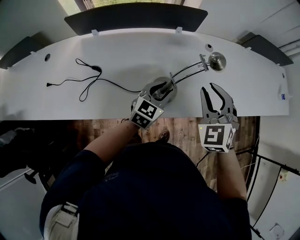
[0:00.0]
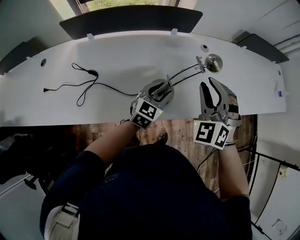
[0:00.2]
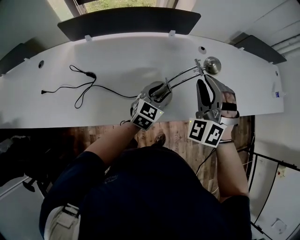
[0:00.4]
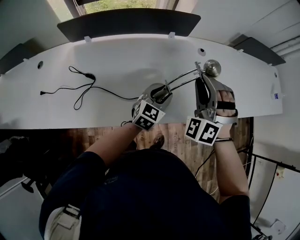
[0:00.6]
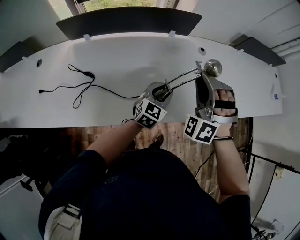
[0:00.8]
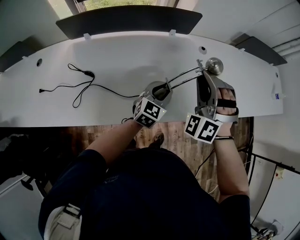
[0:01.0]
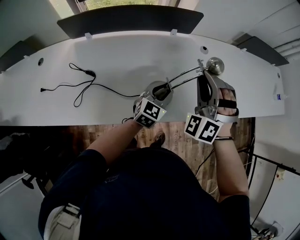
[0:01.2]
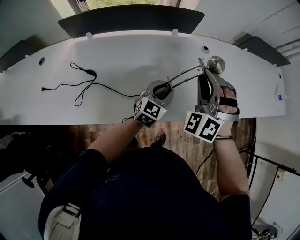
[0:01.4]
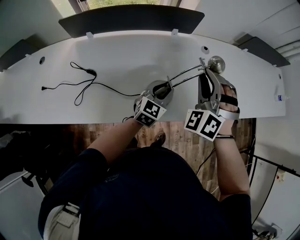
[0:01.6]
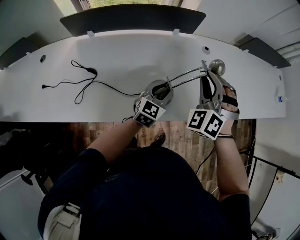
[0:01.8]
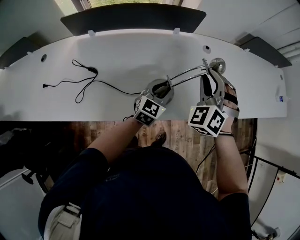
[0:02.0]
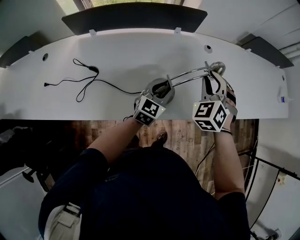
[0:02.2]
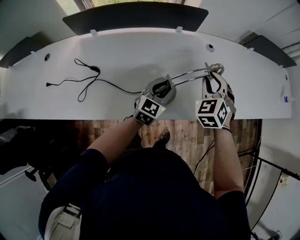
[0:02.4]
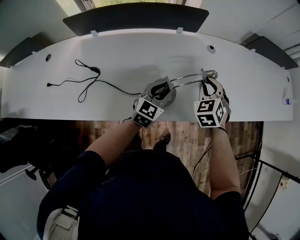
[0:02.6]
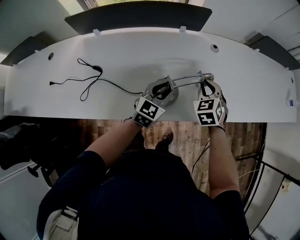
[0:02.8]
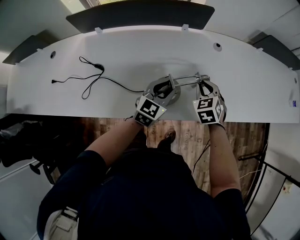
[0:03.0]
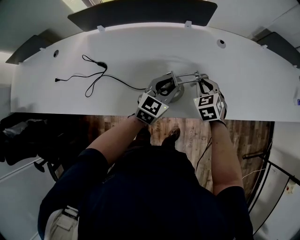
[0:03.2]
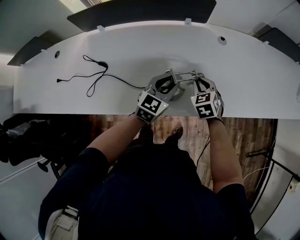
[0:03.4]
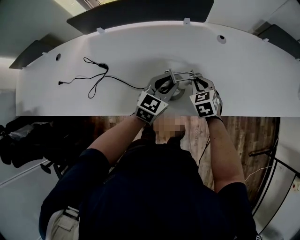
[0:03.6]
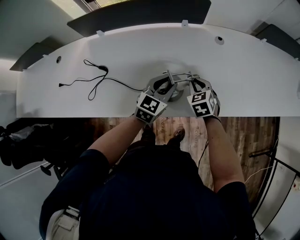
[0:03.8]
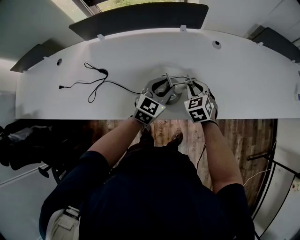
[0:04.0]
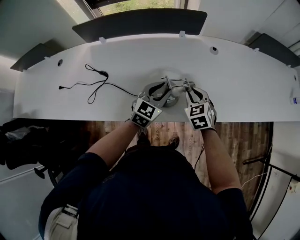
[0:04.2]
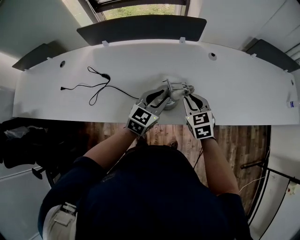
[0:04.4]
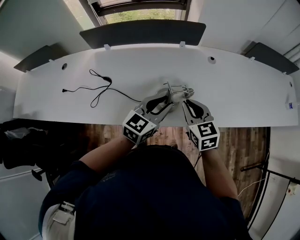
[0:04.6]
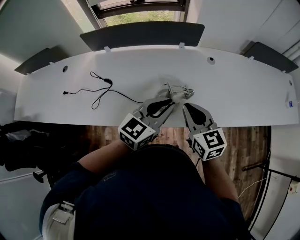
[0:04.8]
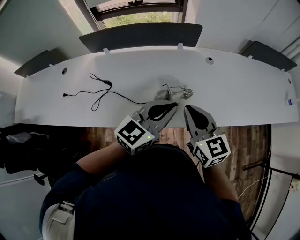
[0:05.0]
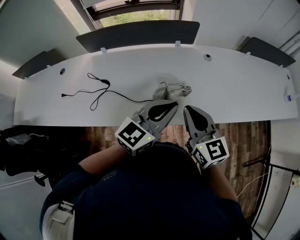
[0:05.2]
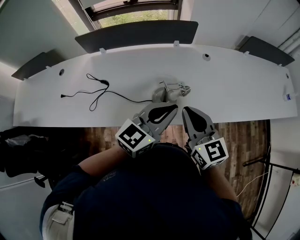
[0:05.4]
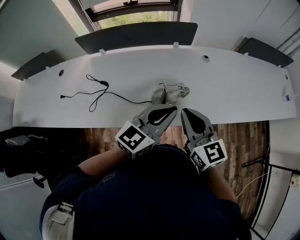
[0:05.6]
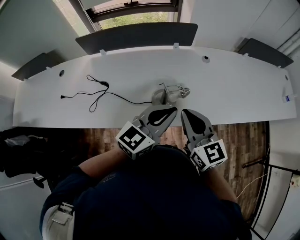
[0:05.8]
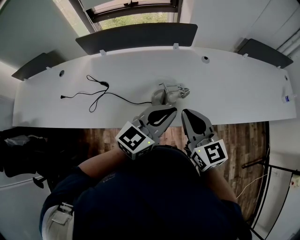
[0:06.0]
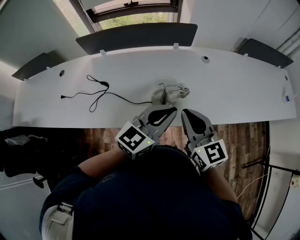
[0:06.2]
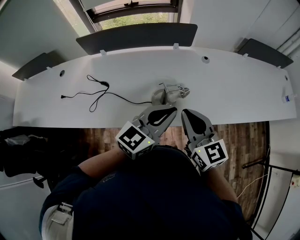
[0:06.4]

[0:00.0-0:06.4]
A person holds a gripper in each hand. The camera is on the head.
0.0 to 1.6 s: The right gripper heads forward, covering roughly 5 cm, and rotates roughly 30 degrees.
1.6 to 3.2 s: The right gripper travels downward by roughly 20 cm, and rolls clockwise, seen from behind, by about 40 degrees.
3.2 to 4.8 s: Both grippers move upward and backward, about 20 cm. The right gripper changes its angle by some 40 degrees.
4.8 to 6.4 s: The left gripper changes place by approximately 5 cm. The right gripper moves some 5 cm.

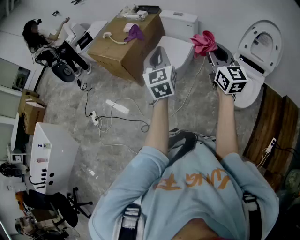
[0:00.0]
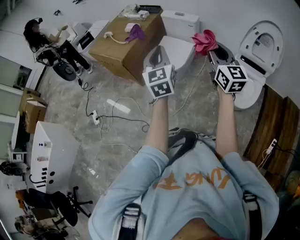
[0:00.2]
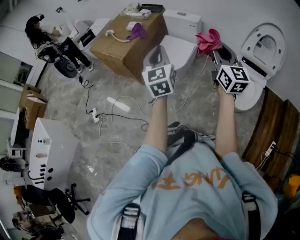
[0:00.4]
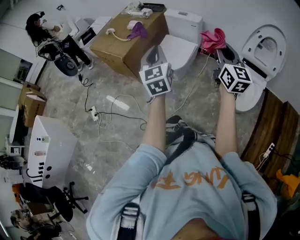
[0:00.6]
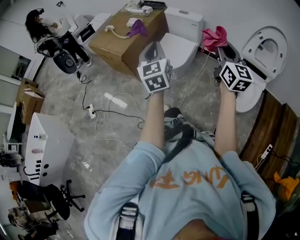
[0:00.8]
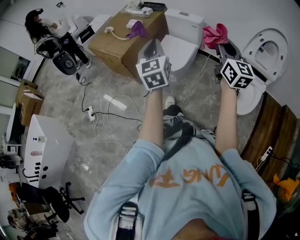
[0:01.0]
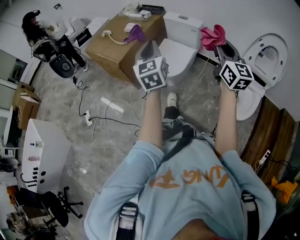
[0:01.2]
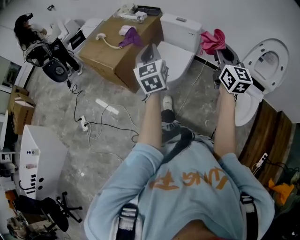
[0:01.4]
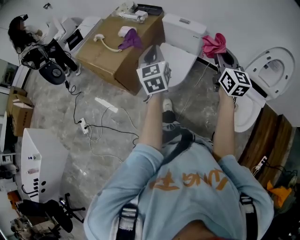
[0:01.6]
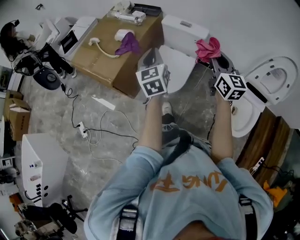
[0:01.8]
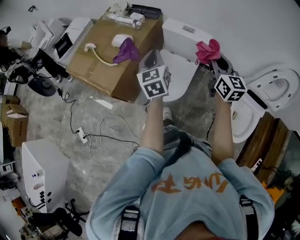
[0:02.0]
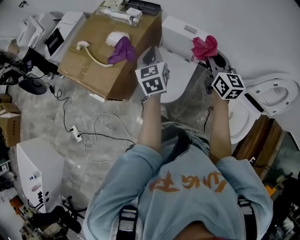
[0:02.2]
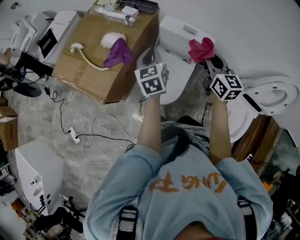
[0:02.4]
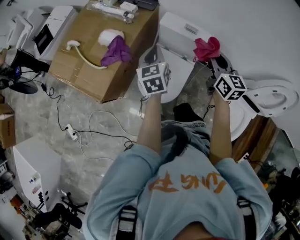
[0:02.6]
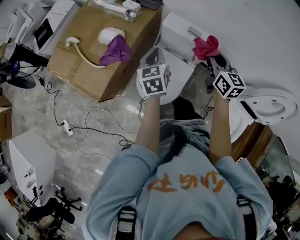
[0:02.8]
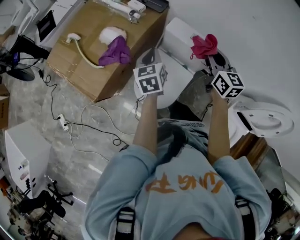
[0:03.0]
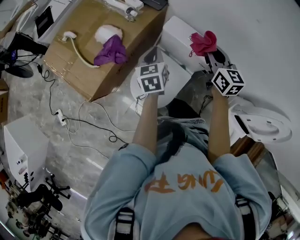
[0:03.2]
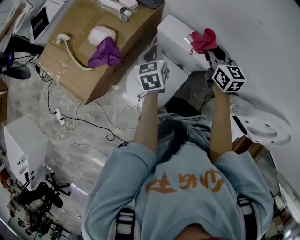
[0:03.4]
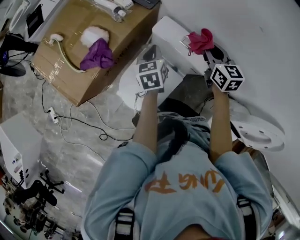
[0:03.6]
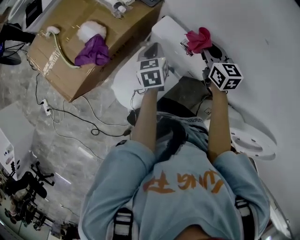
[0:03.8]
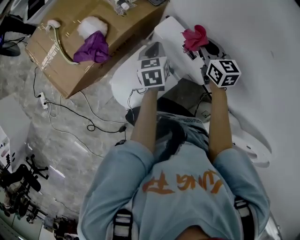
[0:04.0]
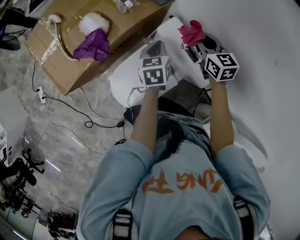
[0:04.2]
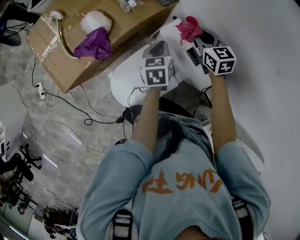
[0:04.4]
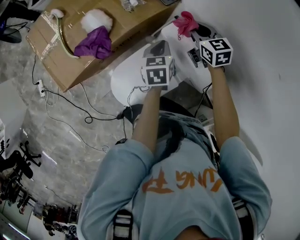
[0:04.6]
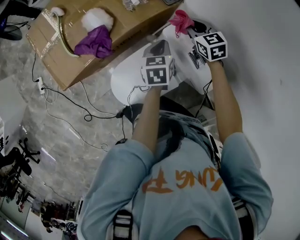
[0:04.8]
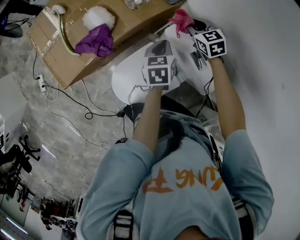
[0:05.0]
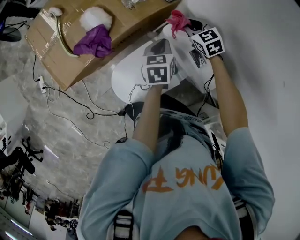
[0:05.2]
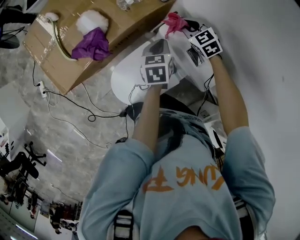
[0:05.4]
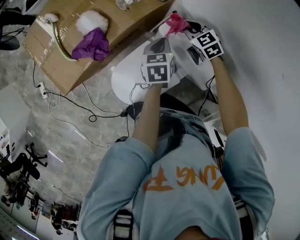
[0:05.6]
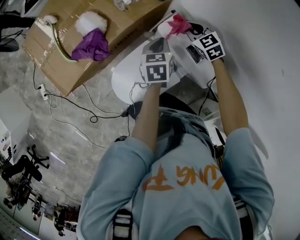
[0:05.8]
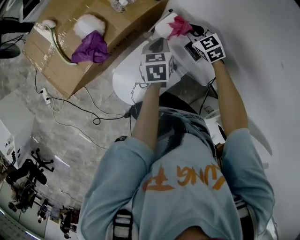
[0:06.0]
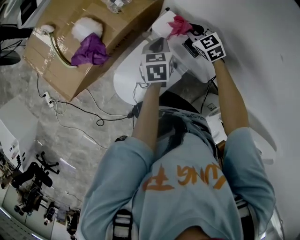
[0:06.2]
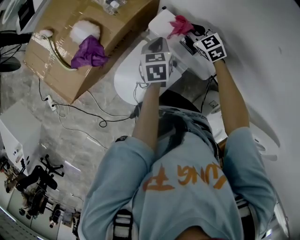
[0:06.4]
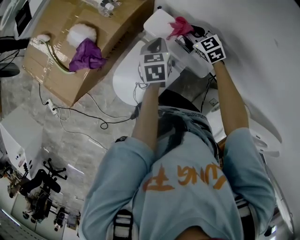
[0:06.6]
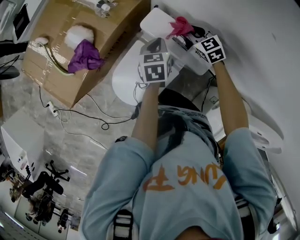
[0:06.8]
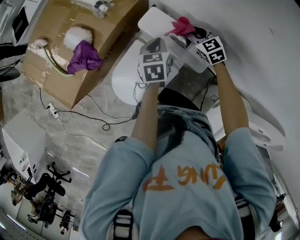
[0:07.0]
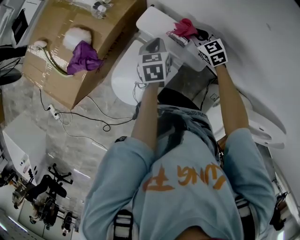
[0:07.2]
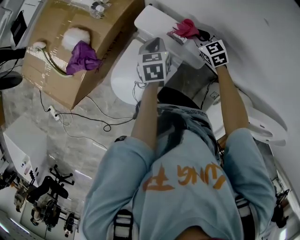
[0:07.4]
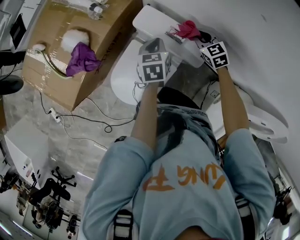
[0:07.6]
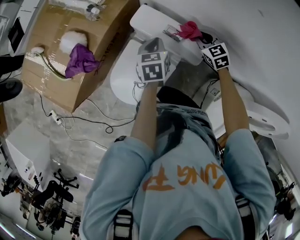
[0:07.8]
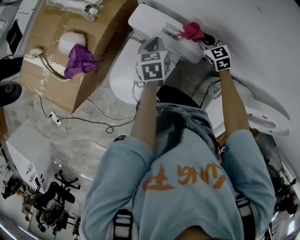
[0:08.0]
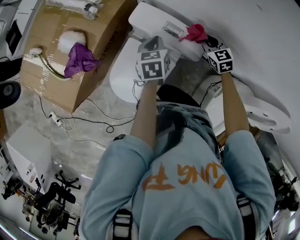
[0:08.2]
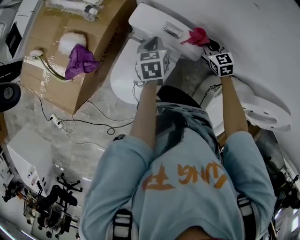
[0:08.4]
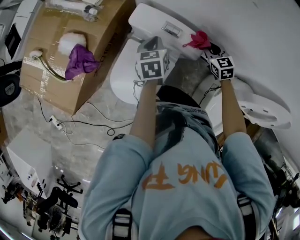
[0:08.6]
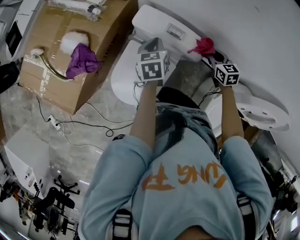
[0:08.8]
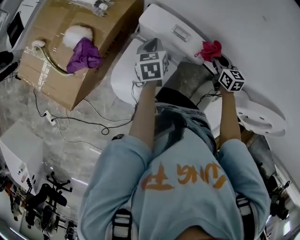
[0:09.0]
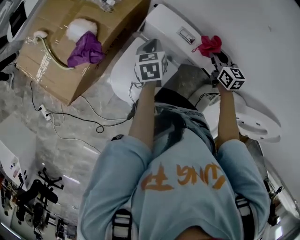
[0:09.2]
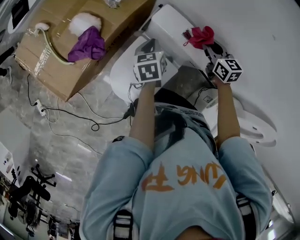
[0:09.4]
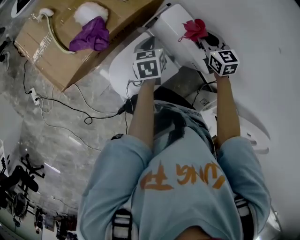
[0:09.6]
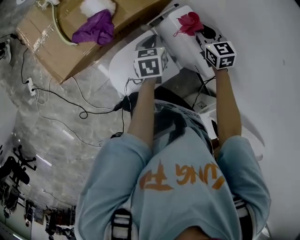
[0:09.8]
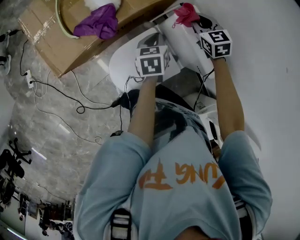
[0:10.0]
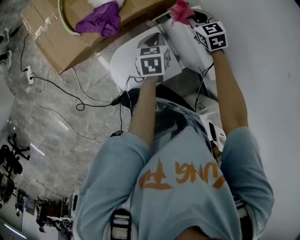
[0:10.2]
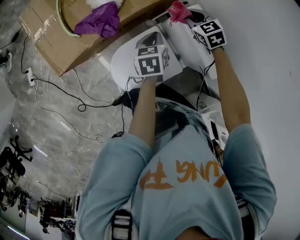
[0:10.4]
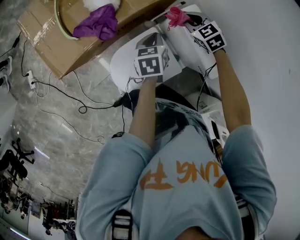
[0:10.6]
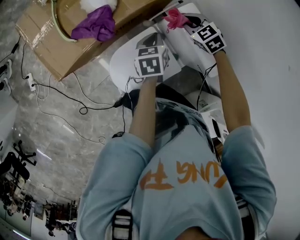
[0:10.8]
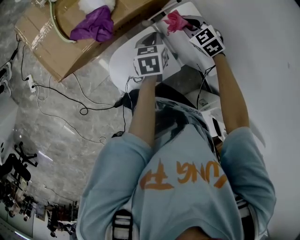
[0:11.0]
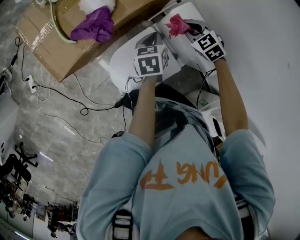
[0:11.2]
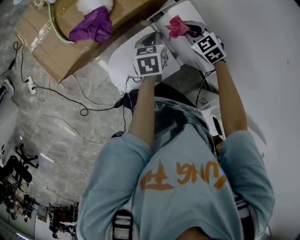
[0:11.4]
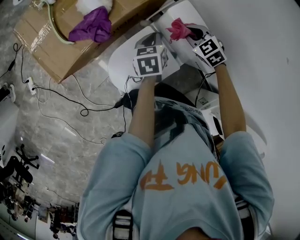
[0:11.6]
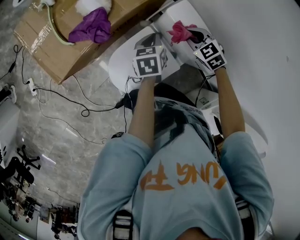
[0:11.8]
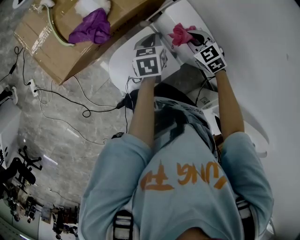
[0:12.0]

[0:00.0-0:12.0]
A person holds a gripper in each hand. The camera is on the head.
0.0 to 1.6 s: The grippers both shift forward by roughly 25 cm.
1.6 to 3.0 s: The right gripper is displaced forward by approximately 40 cm, and swivels some 20 degrees. The left gripper heads forward and downward, covering approximately 40 cm, and turns by approximately 30 degrees.
3.0 to 4.4 s: The left gripper travels to the right, forward and downward by about 20 cm. The right gripper heads forward and downward, covering some 25 cm, and rotates some 30 degrees.
4.4 to 6.0 s: The right gripper goes some 10 cm downward.
6.0 to 7.6 s: The right gripper shifts some 15 cm to the right and backward. Meanwhile the left gripper shifts about 10 cm to the right and backward.
7.6 to 9.0 s: The right gripper shifts about 10 cm backward and to the right, and rotates some 30 degrees.
9.0 to 10.4 s: The right gripper changes place by some 35 cm, and rotates around the line of its fingers by some 50 degrees, counterclockwise from behind; the left gripper ends up approximately 15 cm from where it was, and turns by roughly 20 degrees.
10.4 to 12.0 s: The right gripper travels backward by some 10 cm.

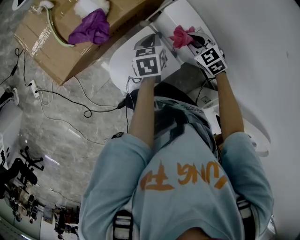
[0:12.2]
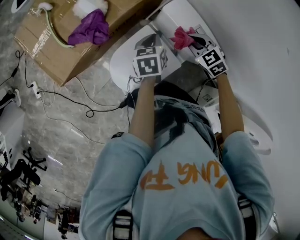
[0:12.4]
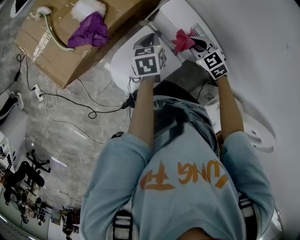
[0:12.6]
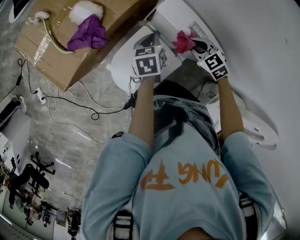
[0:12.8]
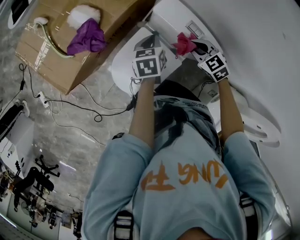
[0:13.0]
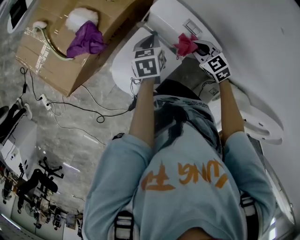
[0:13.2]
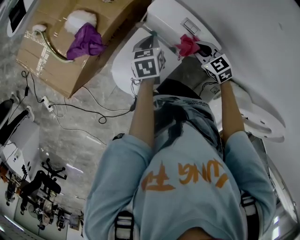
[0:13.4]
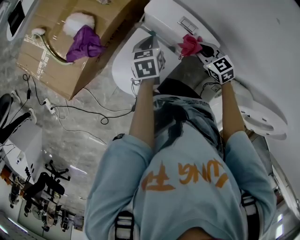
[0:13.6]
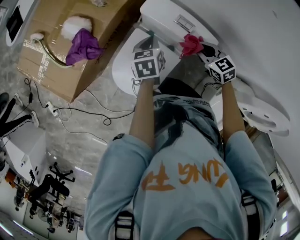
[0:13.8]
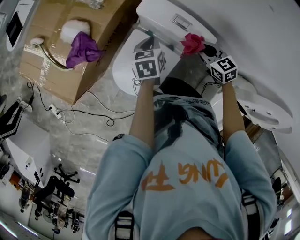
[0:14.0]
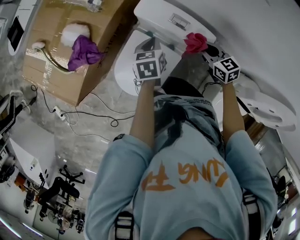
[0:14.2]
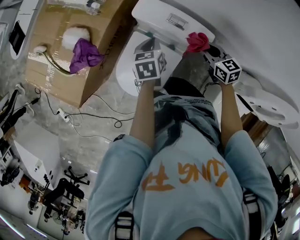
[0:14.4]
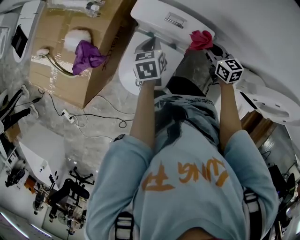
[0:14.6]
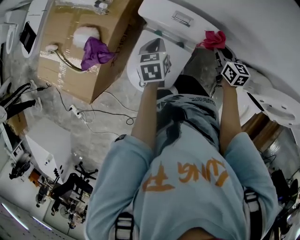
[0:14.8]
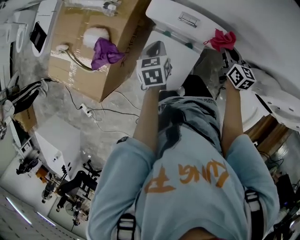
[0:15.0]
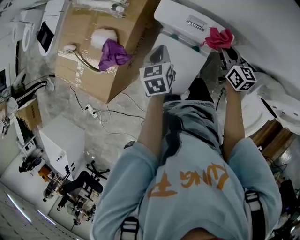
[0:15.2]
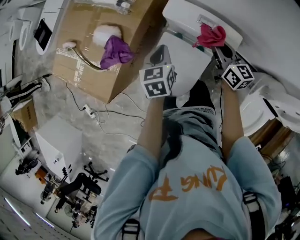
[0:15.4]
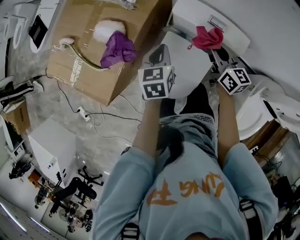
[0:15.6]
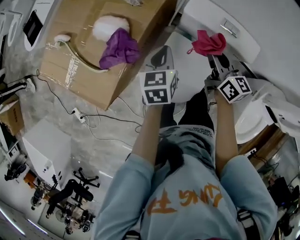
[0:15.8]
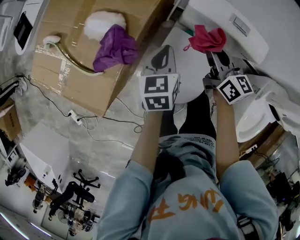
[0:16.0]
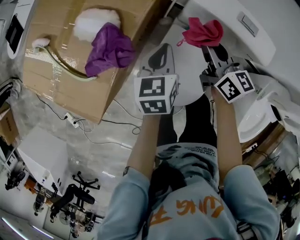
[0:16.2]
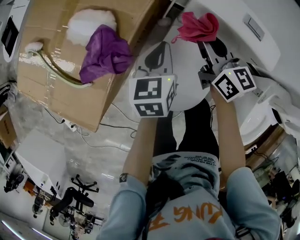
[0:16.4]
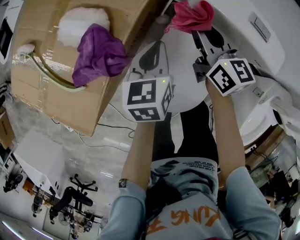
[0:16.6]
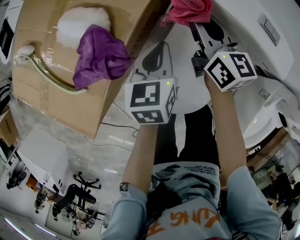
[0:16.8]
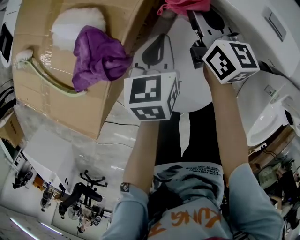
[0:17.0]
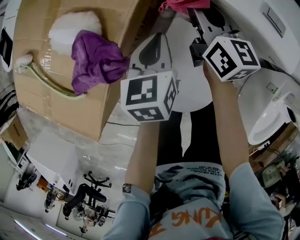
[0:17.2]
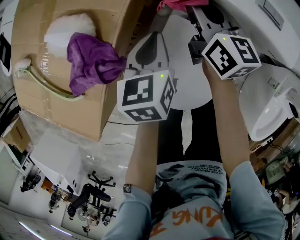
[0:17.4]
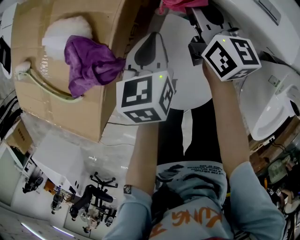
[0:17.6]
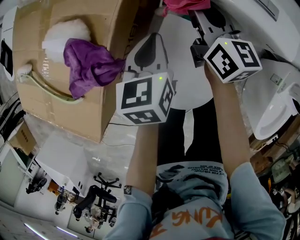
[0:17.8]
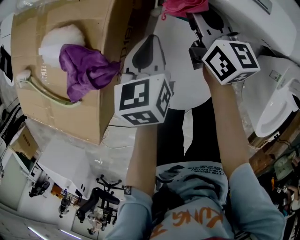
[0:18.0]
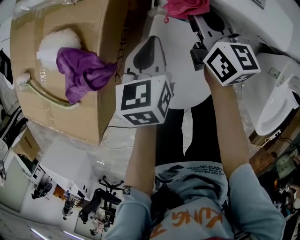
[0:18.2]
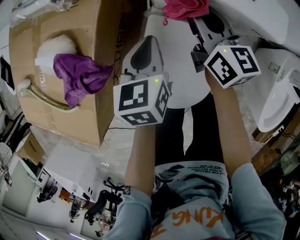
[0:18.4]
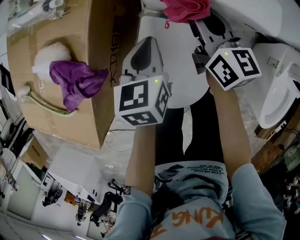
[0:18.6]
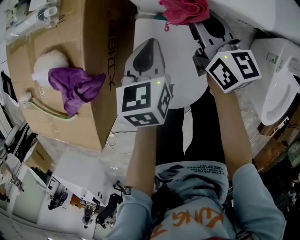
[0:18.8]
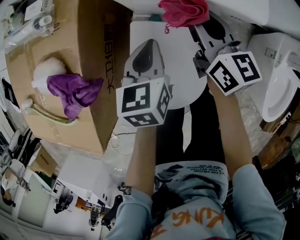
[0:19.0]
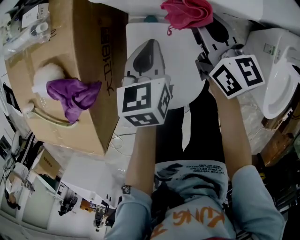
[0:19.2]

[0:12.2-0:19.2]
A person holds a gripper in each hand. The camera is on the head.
12.2 to 13.6 s: The right gripper is displaced backward and to the right by about 10 cm, and swivels approximately 30 degrees; the left gripper shifts by about 5 cm.
13.6 to 15.0 s: The left gripper ends up about 5 cm from where it was, while the right gripper heads to the right, covering roughly 10 cm, and changes its angle by approximately 60 degrees.
15.0 to 16.4 s: The left gripper heads to the left and downward, covering some 20 cm; the right gripper heads to the left, covering some 30 cm.
16.4 to 17.8 s: The right gripper ends up approximately 10 cm from where it was.
17.8 to 19.2 s: The right gripper goes about 15 cm to the right and backward, while the left gripper is displaced to the right by roughly 15 cm.
